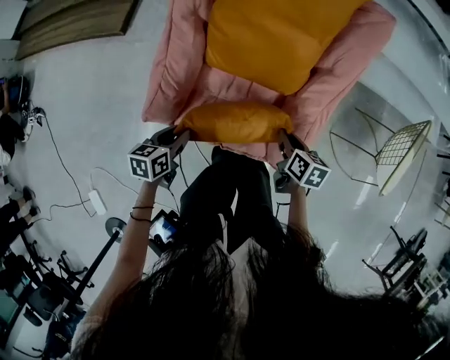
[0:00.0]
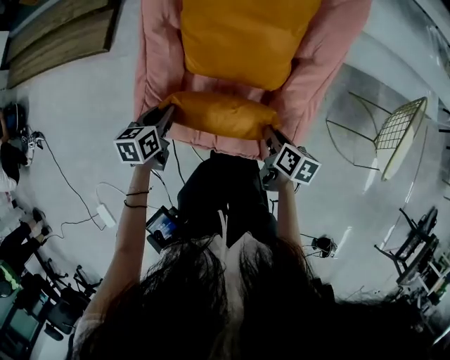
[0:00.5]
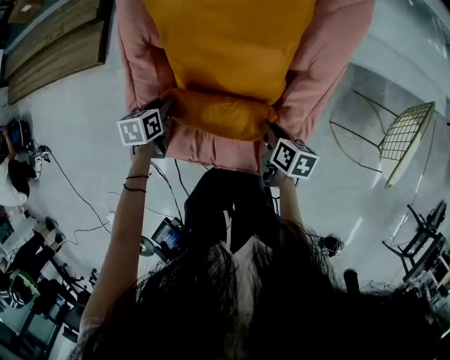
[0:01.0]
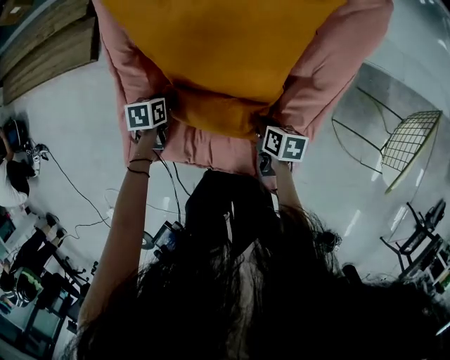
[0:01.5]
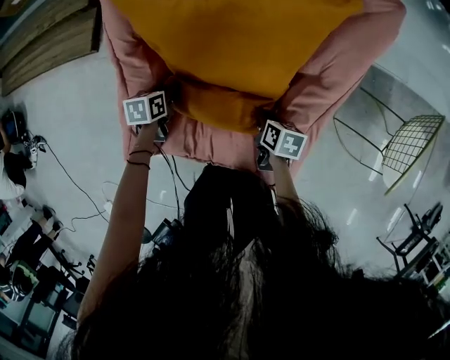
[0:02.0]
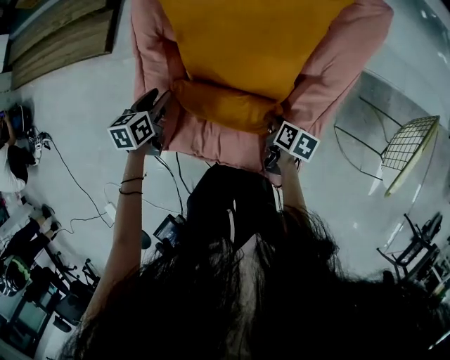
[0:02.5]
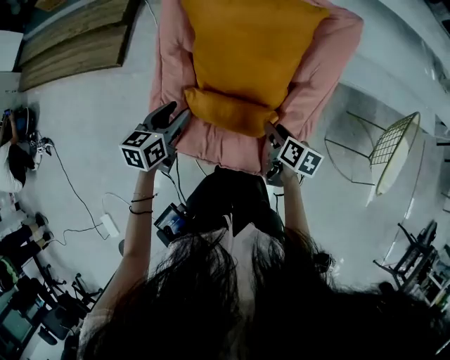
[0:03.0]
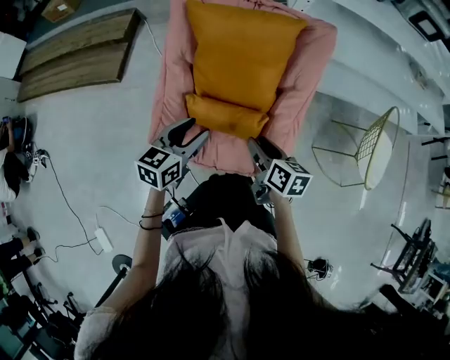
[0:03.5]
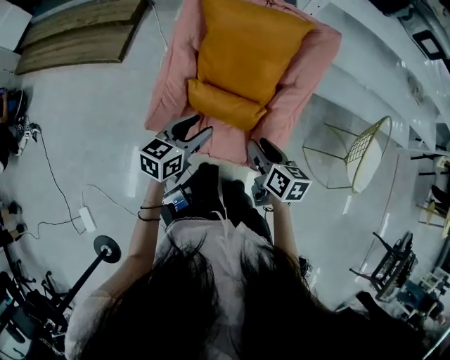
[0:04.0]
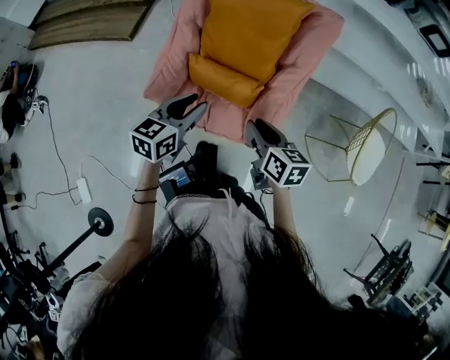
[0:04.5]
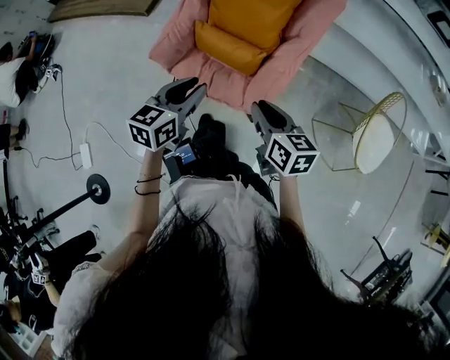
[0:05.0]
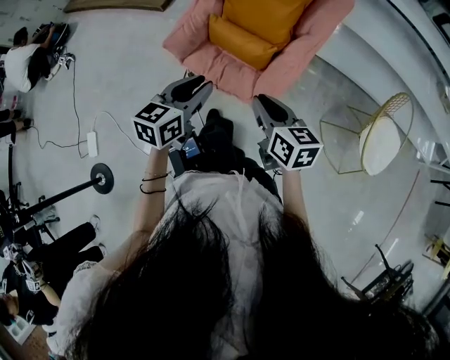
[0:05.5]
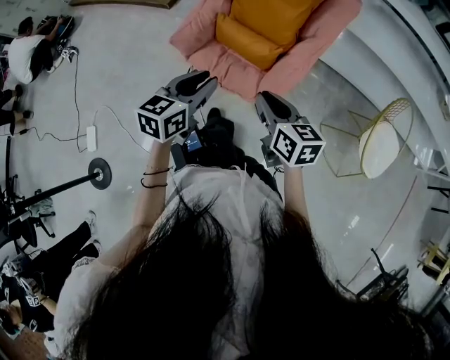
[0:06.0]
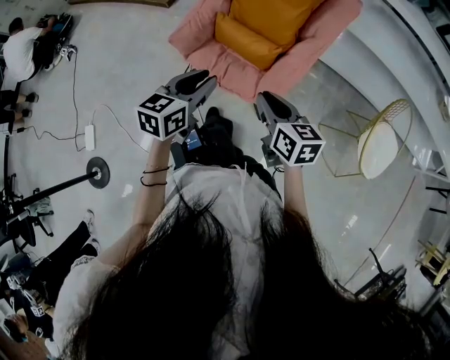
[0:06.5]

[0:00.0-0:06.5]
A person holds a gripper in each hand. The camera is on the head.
0:00.0 to 0:02.0: The left gripper heads forward and downward, covering approximately 30 cm. The right gripper goes some 15 cm forward and downward.
0:02.0 to 0:04.5: Both grippers move upward and backward, roughly 40 cm. The left gripper angles its fingers upward, by about 40 degrees. Meanwhile the right gripper changes its angle by approximately 30 degrees.
0:04.5 to 0:06.5: Both grippers move backward, about 15 cm.

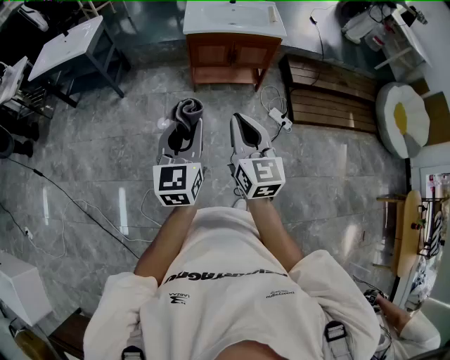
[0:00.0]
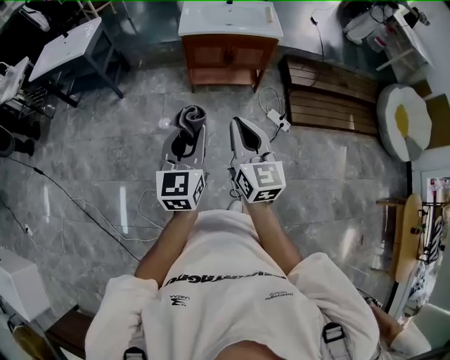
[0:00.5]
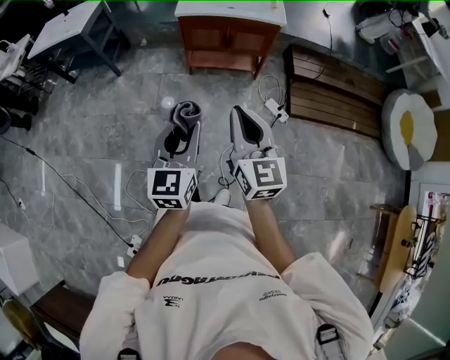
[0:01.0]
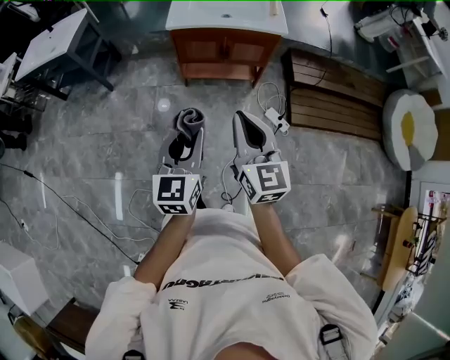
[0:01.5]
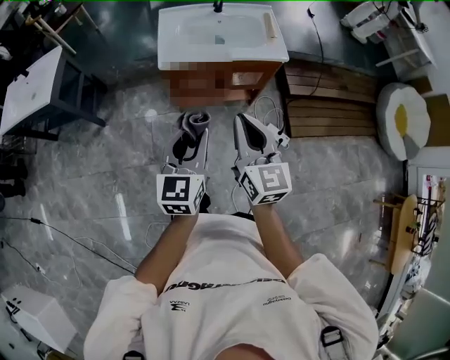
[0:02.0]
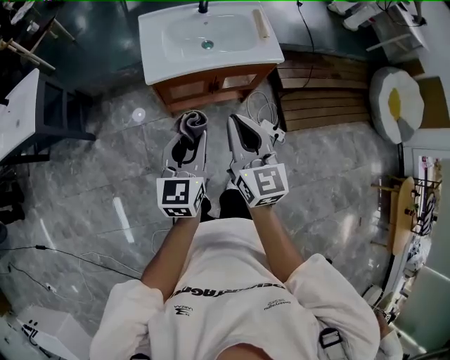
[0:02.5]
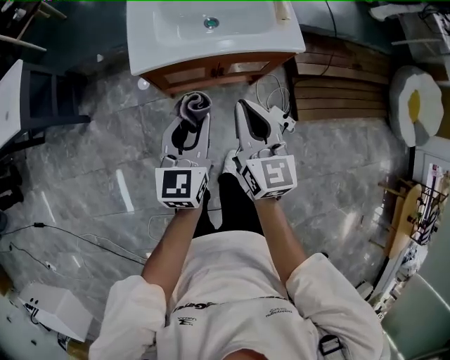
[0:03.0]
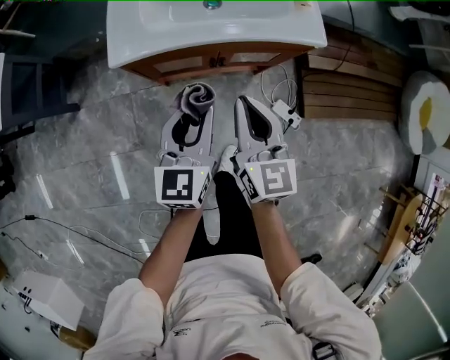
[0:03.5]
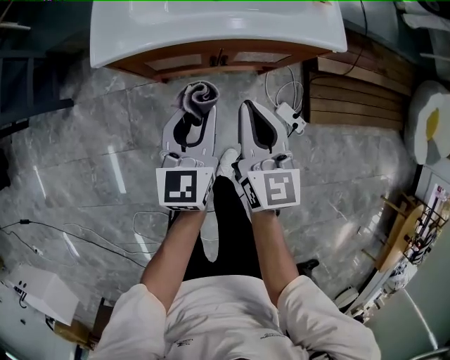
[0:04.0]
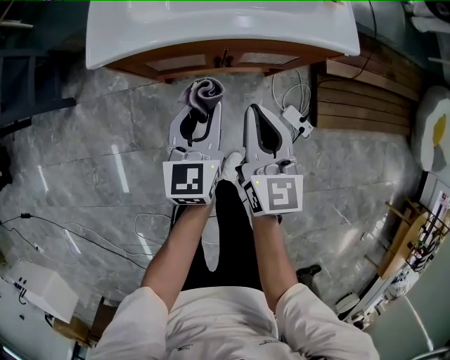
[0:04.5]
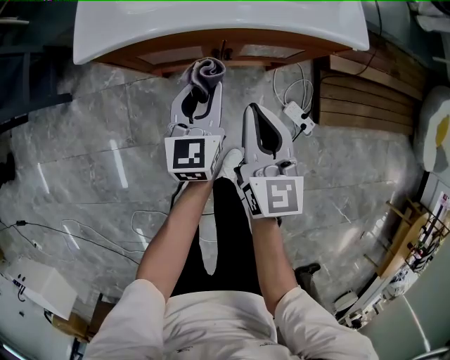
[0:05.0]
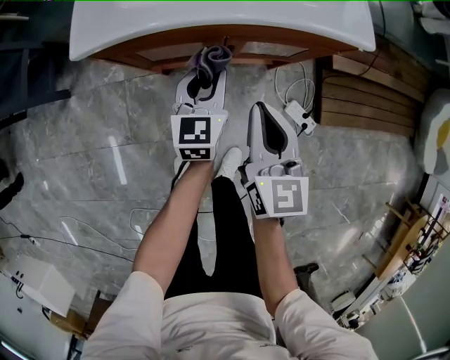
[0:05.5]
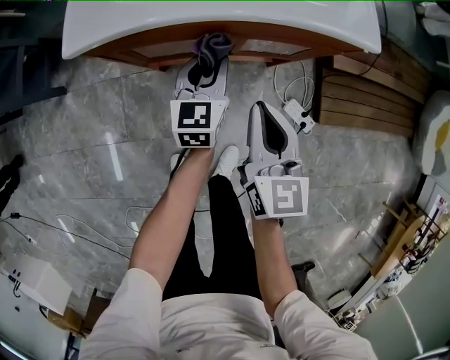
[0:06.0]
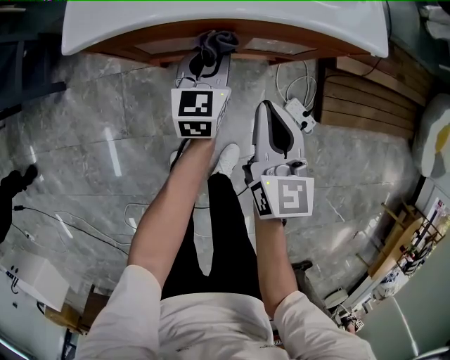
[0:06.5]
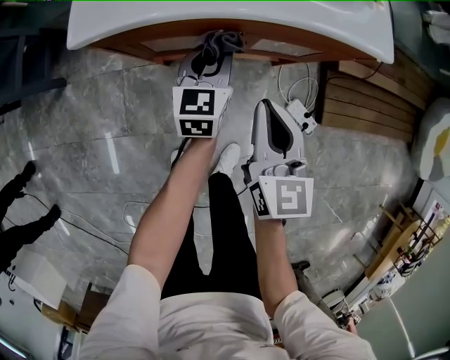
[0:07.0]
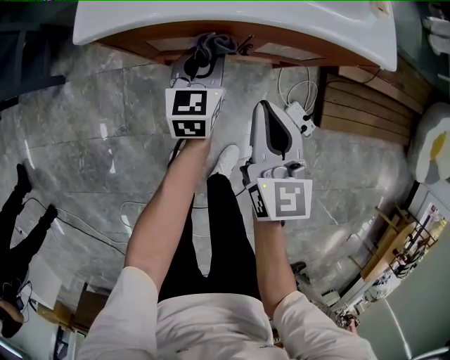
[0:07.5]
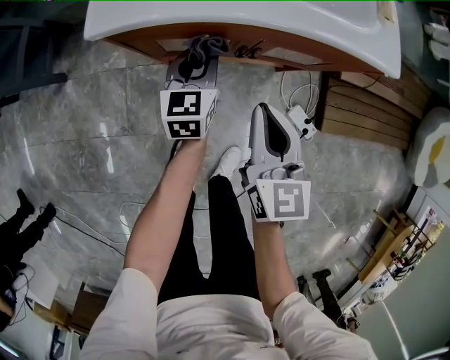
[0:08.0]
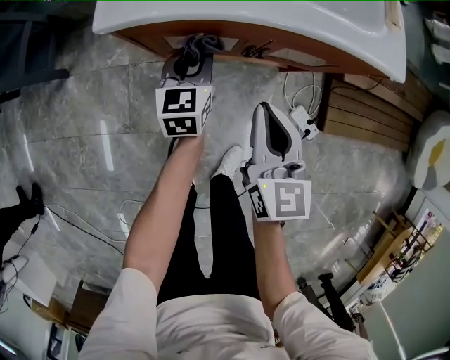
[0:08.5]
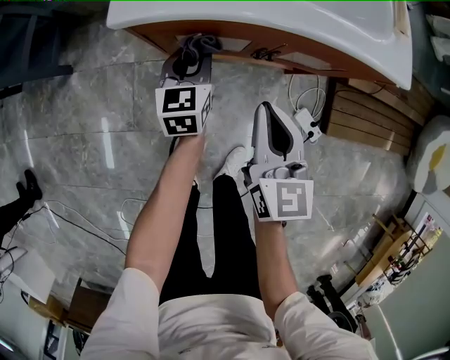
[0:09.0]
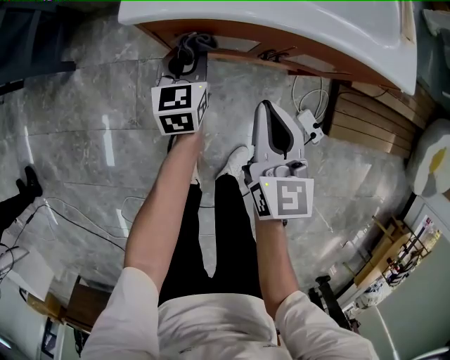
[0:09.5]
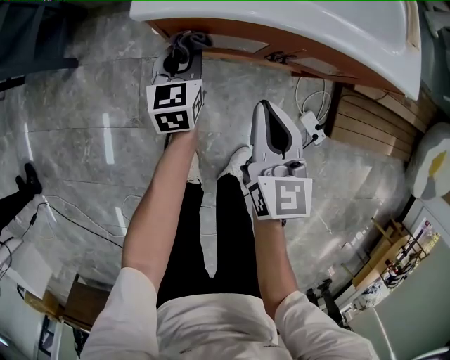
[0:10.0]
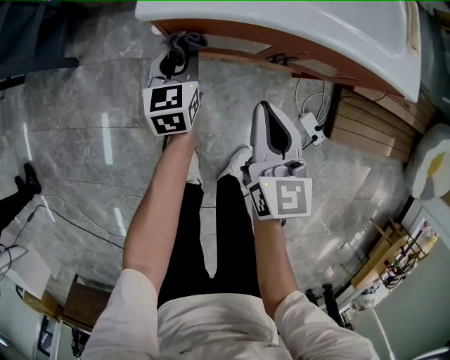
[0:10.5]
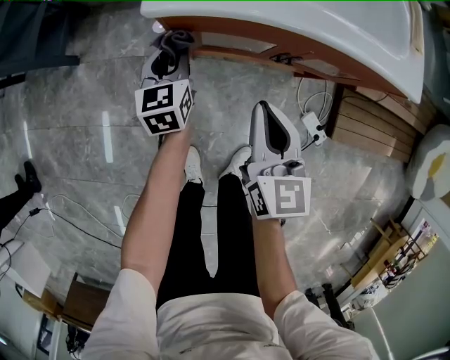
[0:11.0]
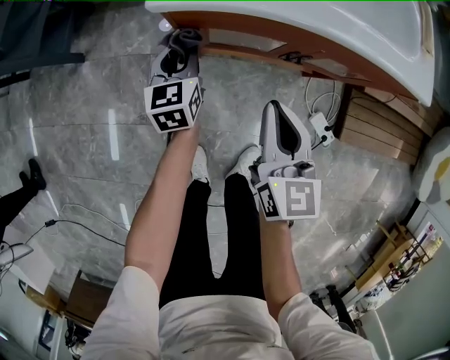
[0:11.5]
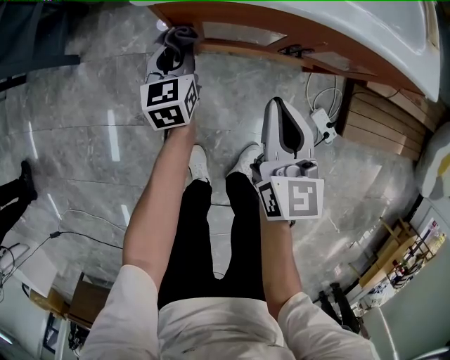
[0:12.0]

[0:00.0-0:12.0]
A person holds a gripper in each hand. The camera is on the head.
0:00.0 to 0:02.0: The grippers both shift forward by roughly 35 cm.
0:02.0 to 0:04.0: The two grippers go roughly 40 cm downward and forward.
0:04.0 to 0:06.0: The left gripper moves downward and forward, about 20 cm, while the right gripper travels downward by approximately 10 cm.
0:06.0 to 0:08.0: Both grippers travel together to the left, roughly 5 cm.
0:08.0 to 0:10.0: The right gripper heads to the left, covering approximately 10 cm, while the left gripper goes some 10 cm to the left.
0:10.0 to 0:12.0: The left gripper is displaced downward by some 5 cm.

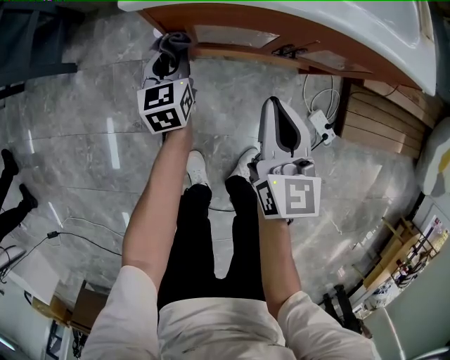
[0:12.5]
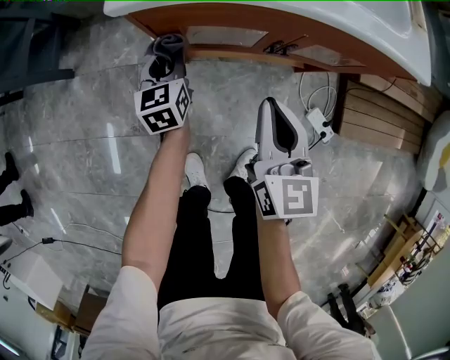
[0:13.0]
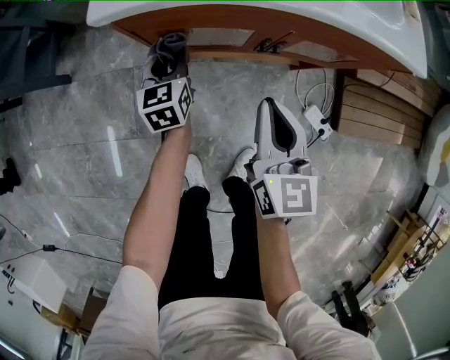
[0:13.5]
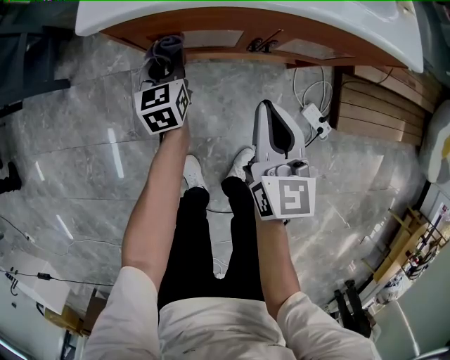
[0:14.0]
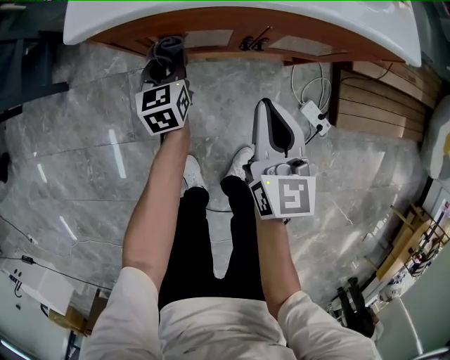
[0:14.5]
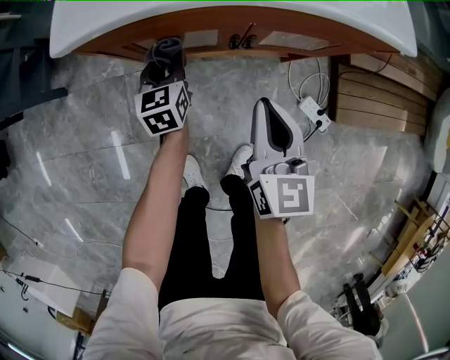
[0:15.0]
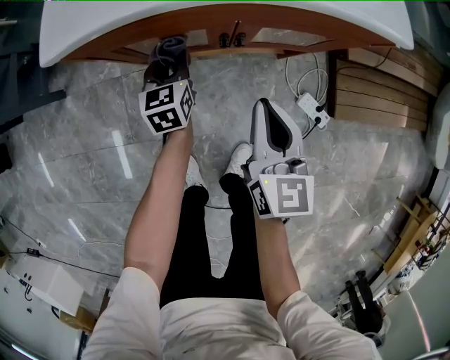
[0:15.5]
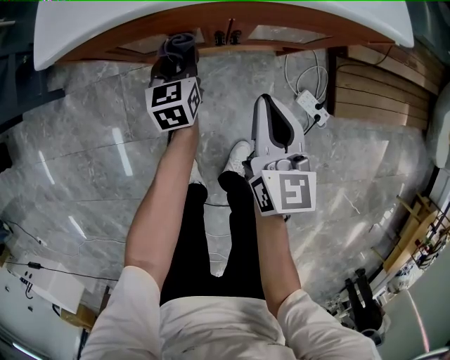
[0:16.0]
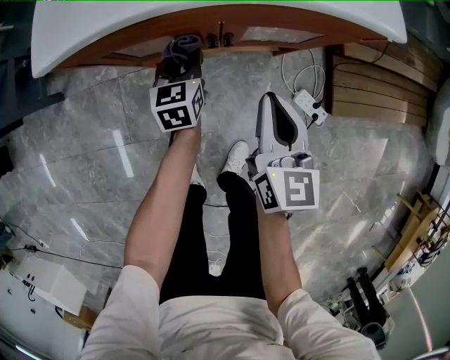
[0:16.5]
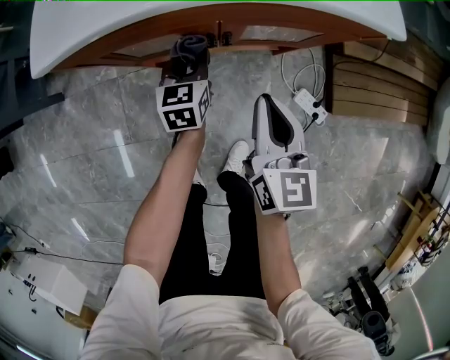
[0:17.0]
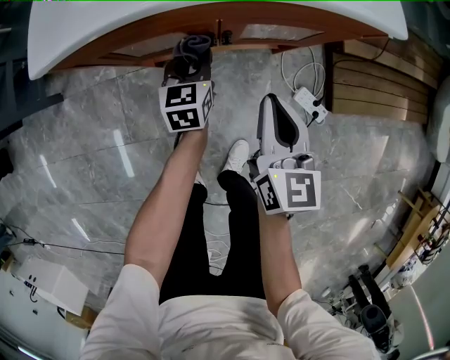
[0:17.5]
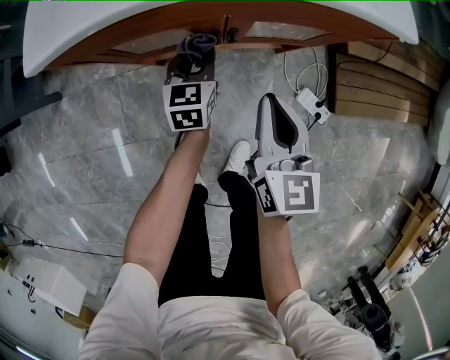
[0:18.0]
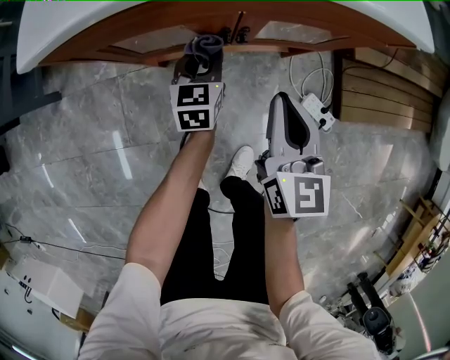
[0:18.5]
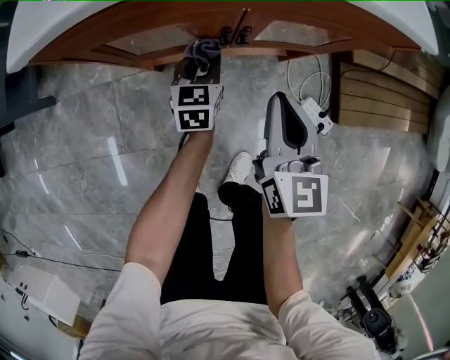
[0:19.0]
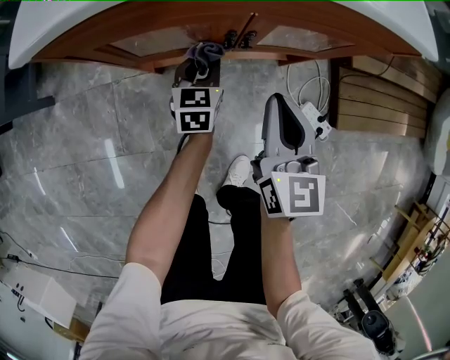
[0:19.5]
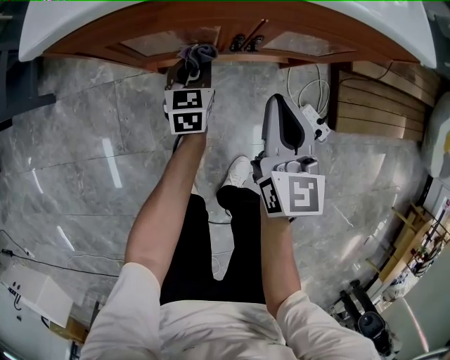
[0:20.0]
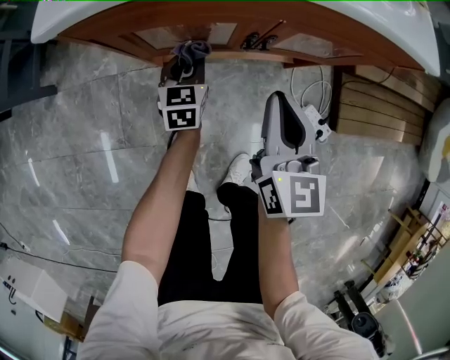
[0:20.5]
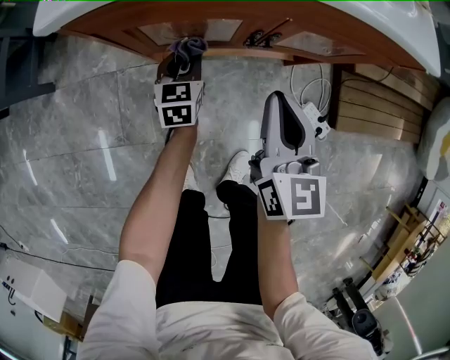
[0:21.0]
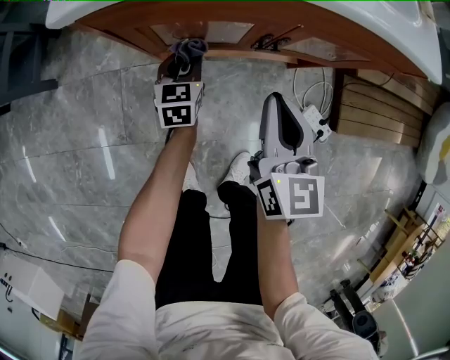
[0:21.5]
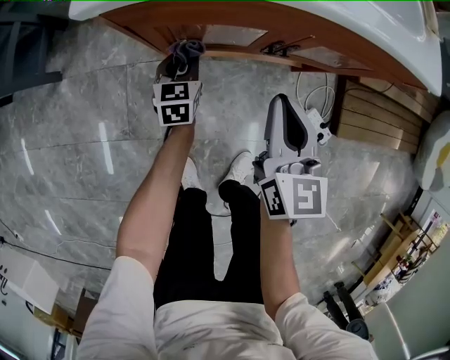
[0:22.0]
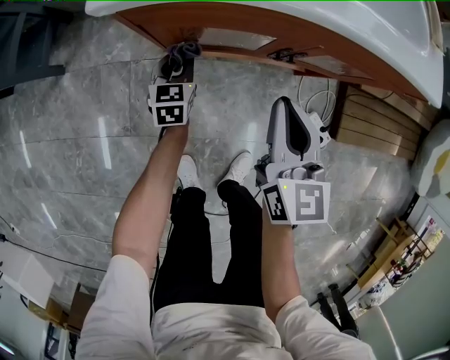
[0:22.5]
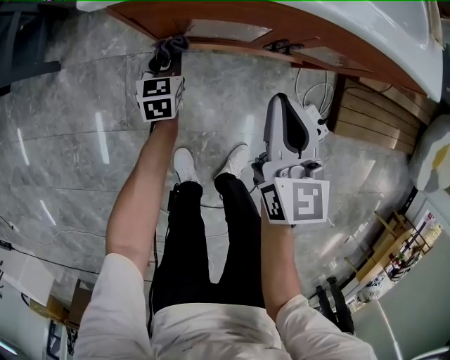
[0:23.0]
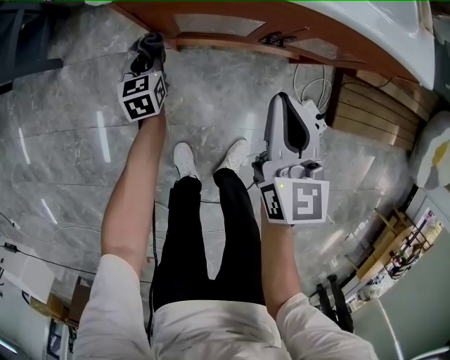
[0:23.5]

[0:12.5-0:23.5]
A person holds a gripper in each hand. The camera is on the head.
0:12.5 to 0:14.5: The grippers both shift to the right by some 5 cm.
0:14.5 to 0:16.0: The right gripper goes some 5 cm to the right. The left gripper travels to the right by some 10 cm.
0:16.0 to 0:18.0: The left gripper heads to the right, covering about 5 cm.
0:18.0 to 0:20.0: The left gripper is displaced downward by approximately 5 cm.
0:20.0 to 0:21.5: Both grippers travel together to the left, approximately 5 cm.
0:21.5 to 0:23.5: The left gripper heads to the left, covering about 15 cm, while the right gripper moves upward, approximately 5 cm.
